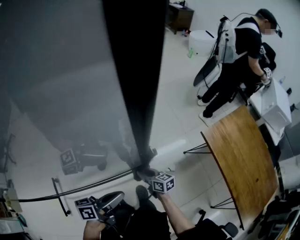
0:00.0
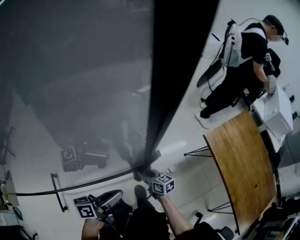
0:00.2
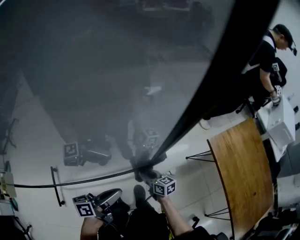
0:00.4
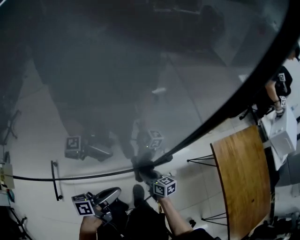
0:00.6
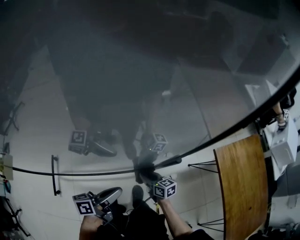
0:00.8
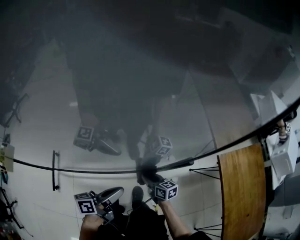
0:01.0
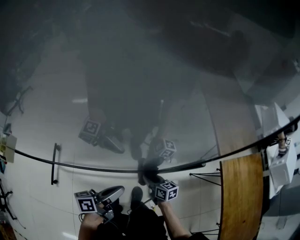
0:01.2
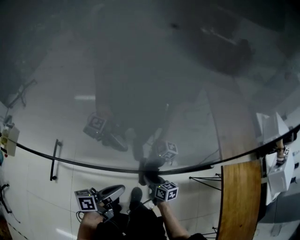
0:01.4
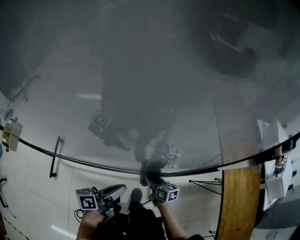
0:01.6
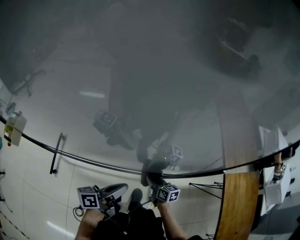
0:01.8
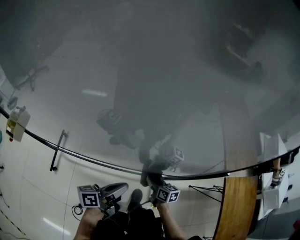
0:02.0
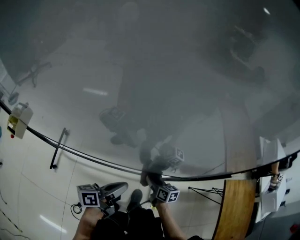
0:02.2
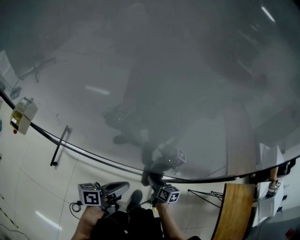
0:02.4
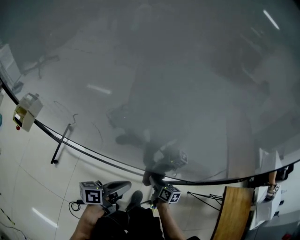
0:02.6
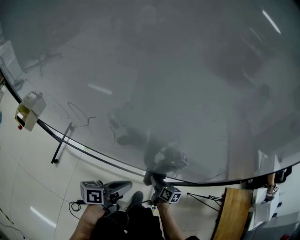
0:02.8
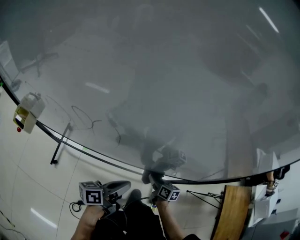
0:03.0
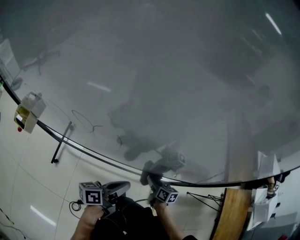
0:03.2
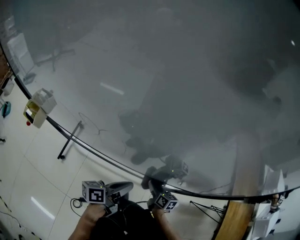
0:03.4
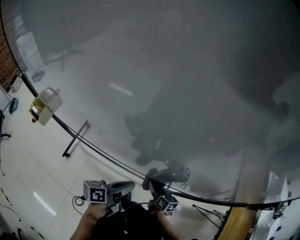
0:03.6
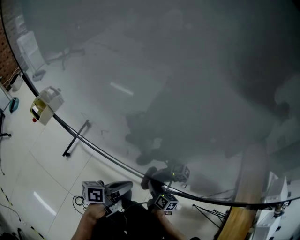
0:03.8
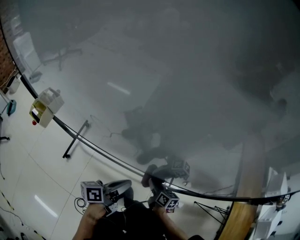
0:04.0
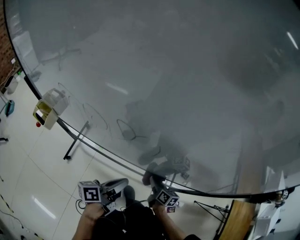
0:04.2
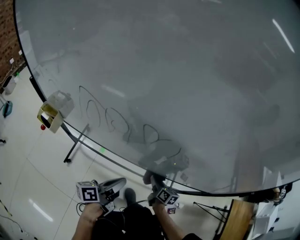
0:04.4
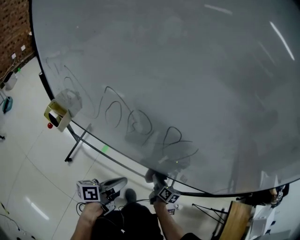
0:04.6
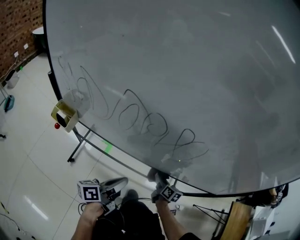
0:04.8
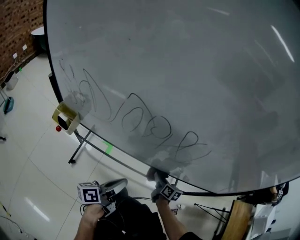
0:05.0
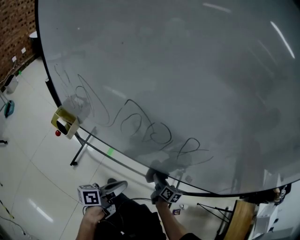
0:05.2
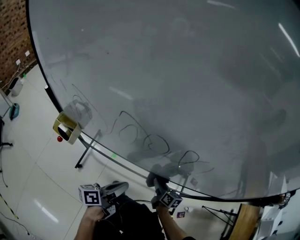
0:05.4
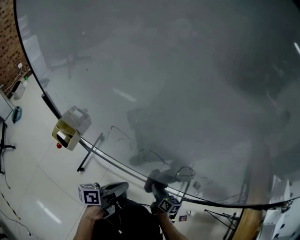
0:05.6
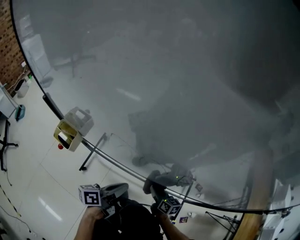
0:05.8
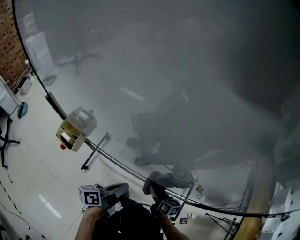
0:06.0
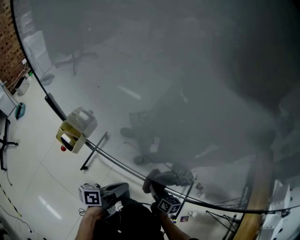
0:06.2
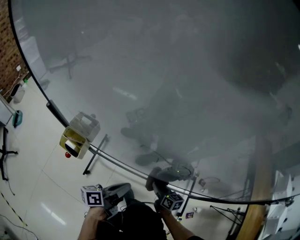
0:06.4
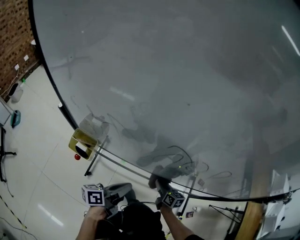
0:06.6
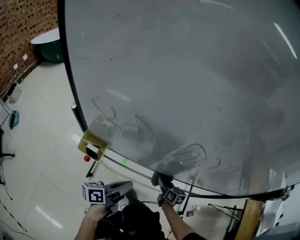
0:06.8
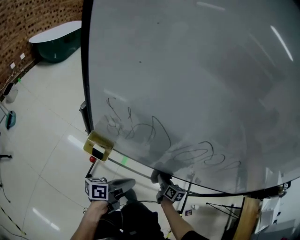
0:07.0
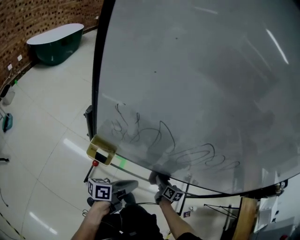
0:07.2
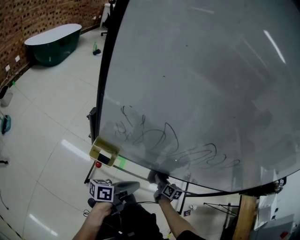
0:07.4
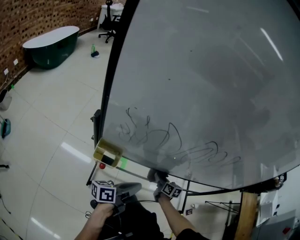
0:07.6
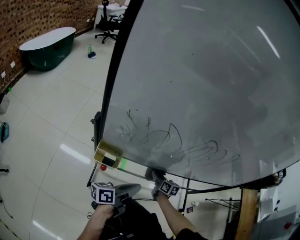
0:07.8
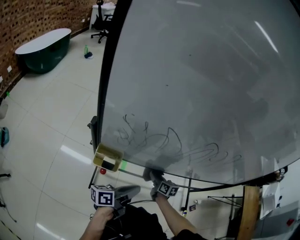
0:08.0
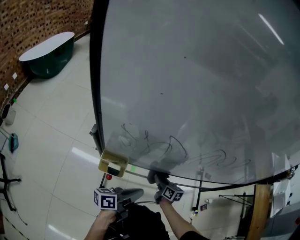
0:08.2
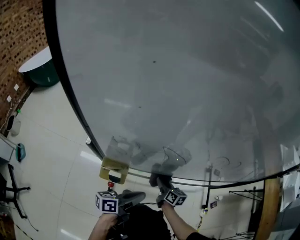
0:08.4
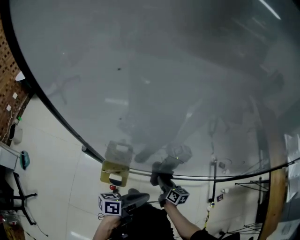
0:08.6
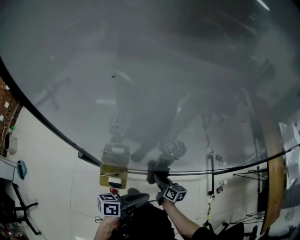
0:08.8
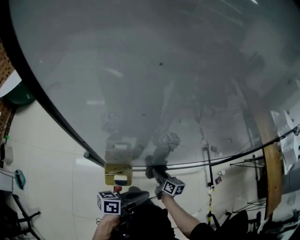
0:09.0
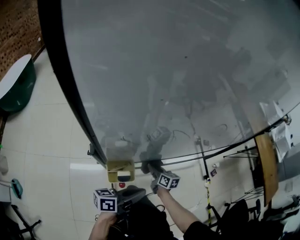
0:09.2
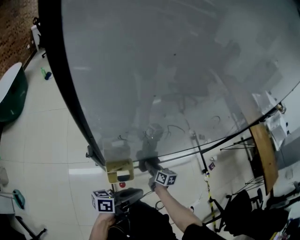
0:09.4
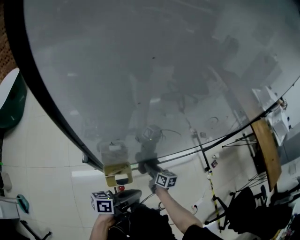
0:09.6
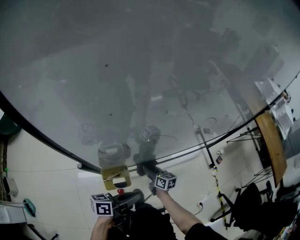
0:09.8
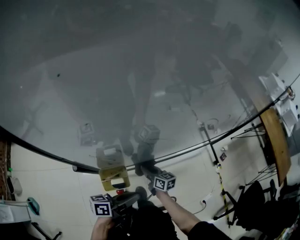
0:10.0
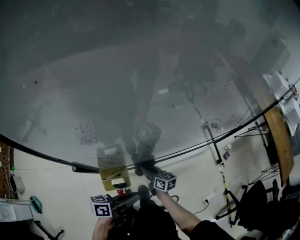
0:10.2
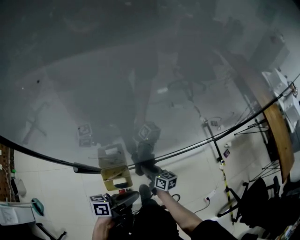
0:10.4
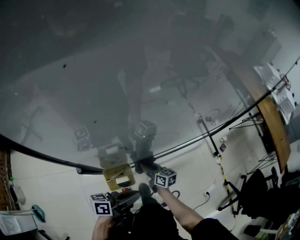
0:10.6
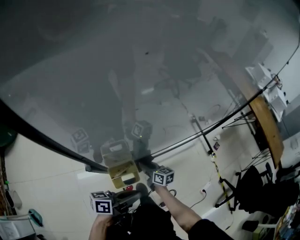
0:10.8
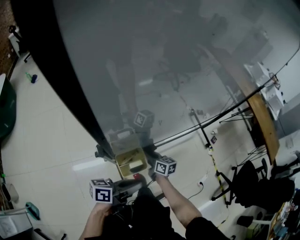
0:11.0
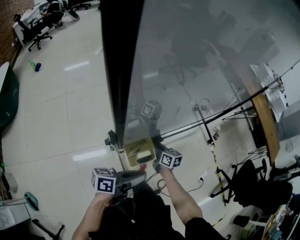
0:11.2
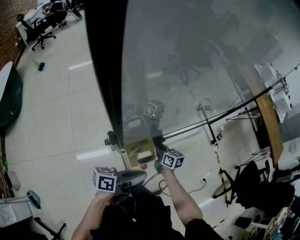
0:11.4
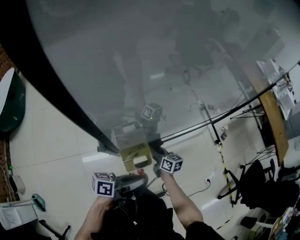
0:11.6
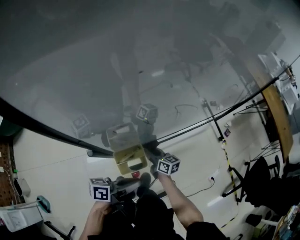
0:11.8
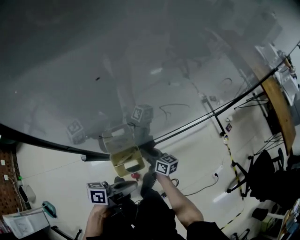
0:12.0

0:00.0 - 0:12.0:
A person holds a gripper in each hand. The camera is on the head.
0:00.0 - 0:01.6: Both grippers move to the left, some 15 cm. The left gripper changes its angle by approximately 30 degrees.
0:01.6 - 0:03.0: The grippers both shift to the left by some 15 cm.
0:03.0 - 0:04.4: Both grippers move to the left, roughly 15 cm.
0:04.4 - 0:06.0: The grippers both shift to the left by some 15 cm.
0:06.0 - 0:07.6: Both grippers travel together to the left, about 15 cm. The left gripper swivels some 20 degrees.
0:07.6 - 0:09.0: The left gripper travels to the left by about 5 cm. The right gripper shifts about 15 cm to the left.
0:09.0 - 0:10.4: The right gripper heads to the left, covering approximately 5 cm.
0:10.4 - 0:12.0: The left gripper heads to the left, covering some 5 cm.

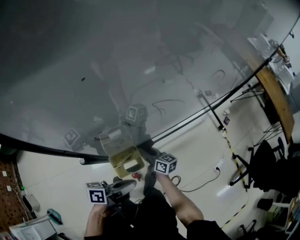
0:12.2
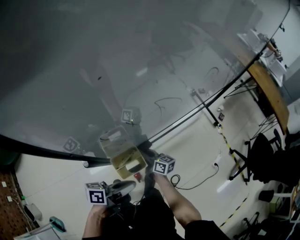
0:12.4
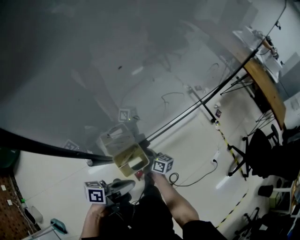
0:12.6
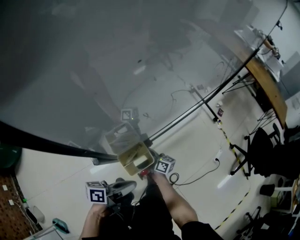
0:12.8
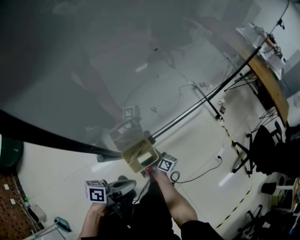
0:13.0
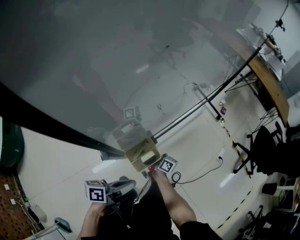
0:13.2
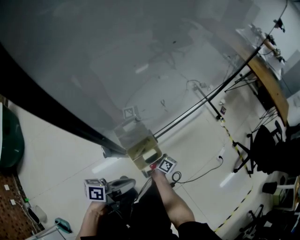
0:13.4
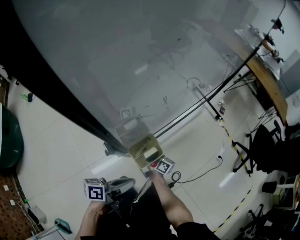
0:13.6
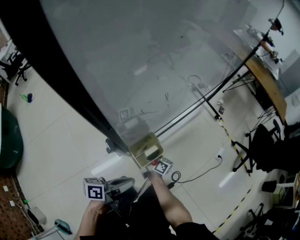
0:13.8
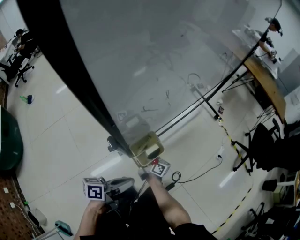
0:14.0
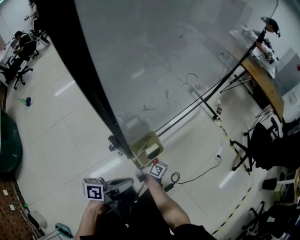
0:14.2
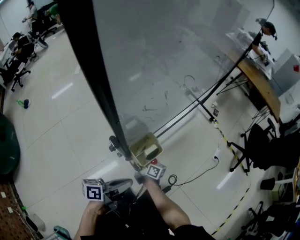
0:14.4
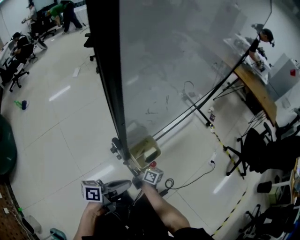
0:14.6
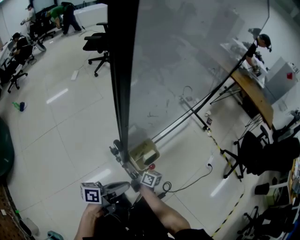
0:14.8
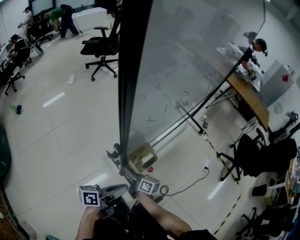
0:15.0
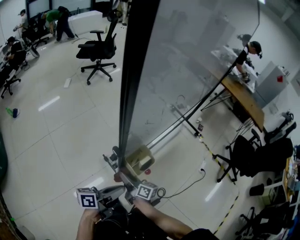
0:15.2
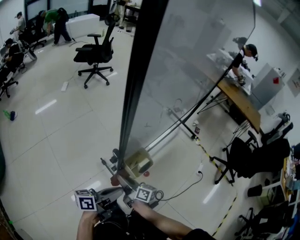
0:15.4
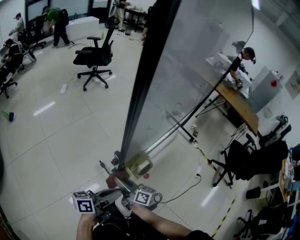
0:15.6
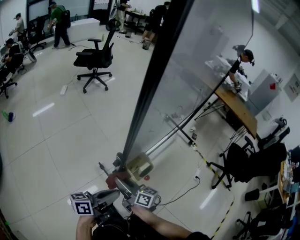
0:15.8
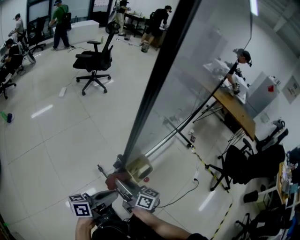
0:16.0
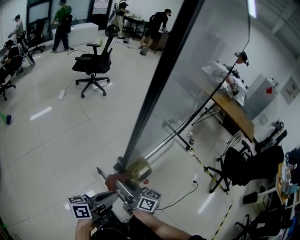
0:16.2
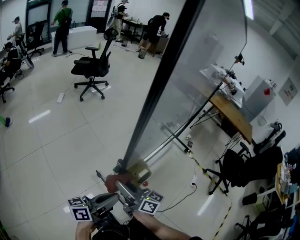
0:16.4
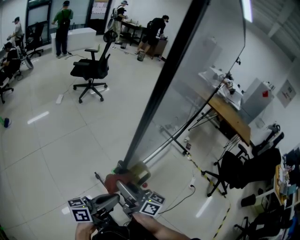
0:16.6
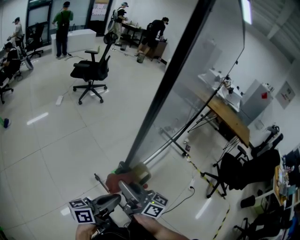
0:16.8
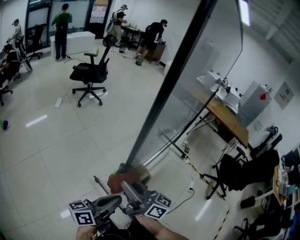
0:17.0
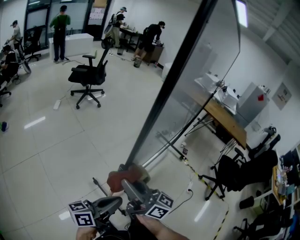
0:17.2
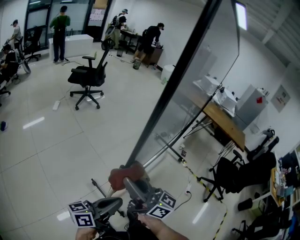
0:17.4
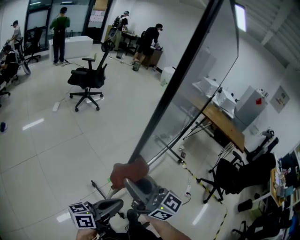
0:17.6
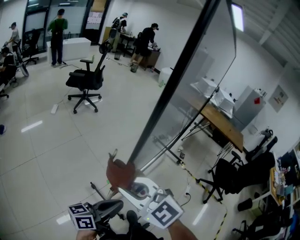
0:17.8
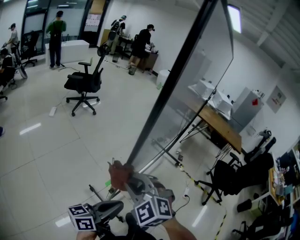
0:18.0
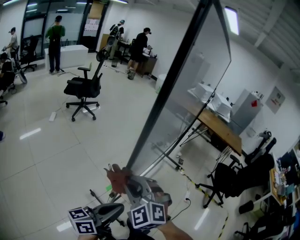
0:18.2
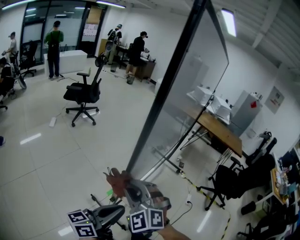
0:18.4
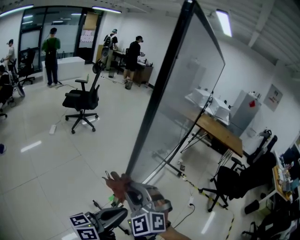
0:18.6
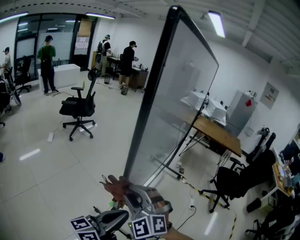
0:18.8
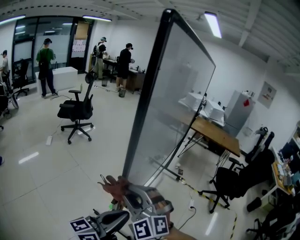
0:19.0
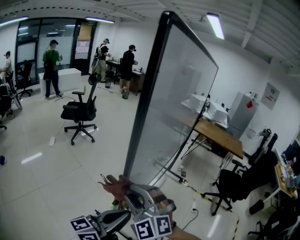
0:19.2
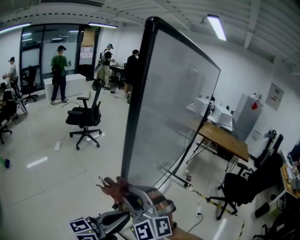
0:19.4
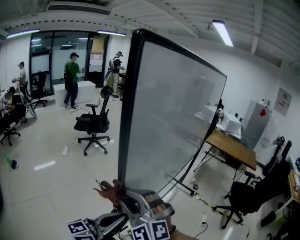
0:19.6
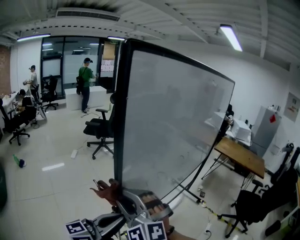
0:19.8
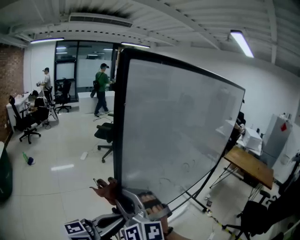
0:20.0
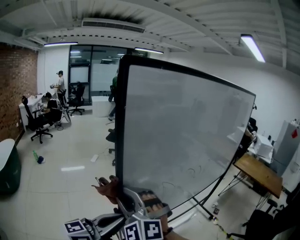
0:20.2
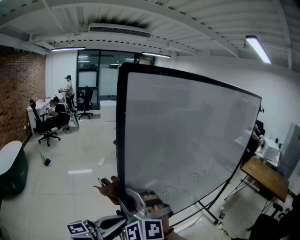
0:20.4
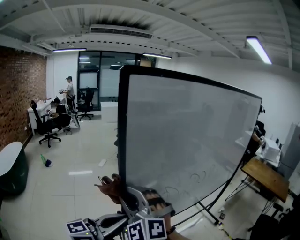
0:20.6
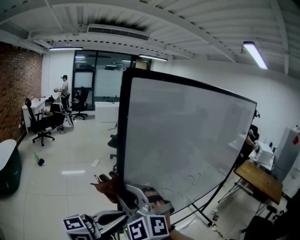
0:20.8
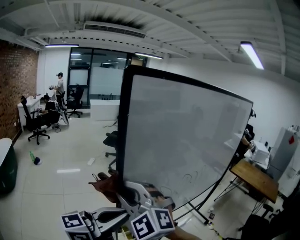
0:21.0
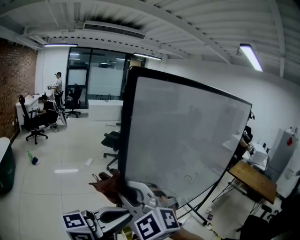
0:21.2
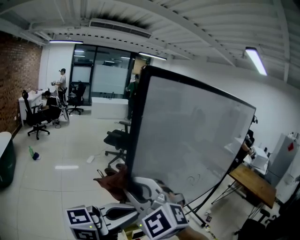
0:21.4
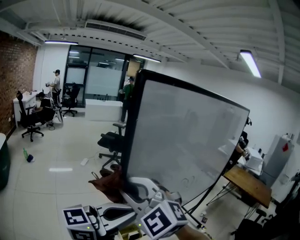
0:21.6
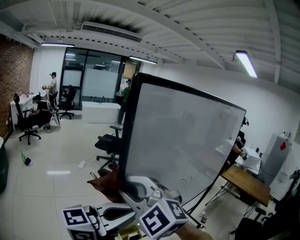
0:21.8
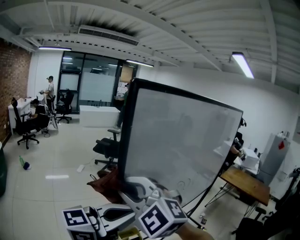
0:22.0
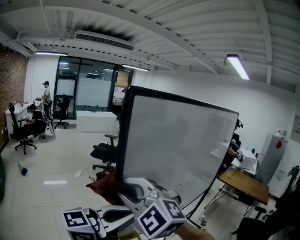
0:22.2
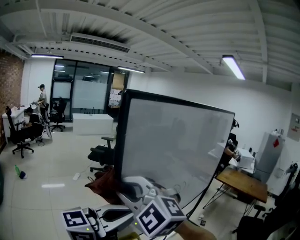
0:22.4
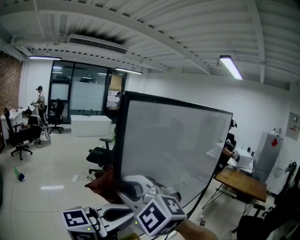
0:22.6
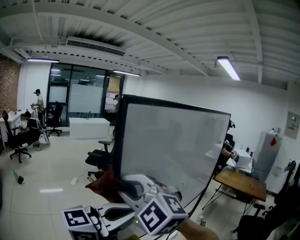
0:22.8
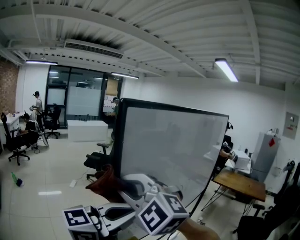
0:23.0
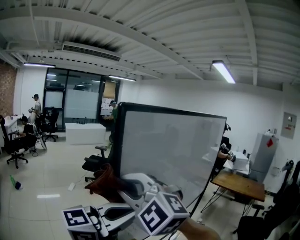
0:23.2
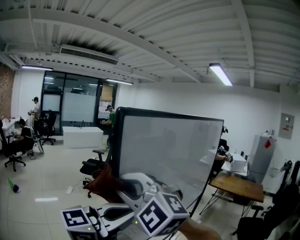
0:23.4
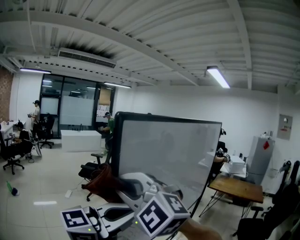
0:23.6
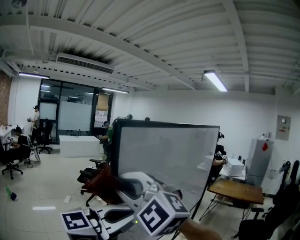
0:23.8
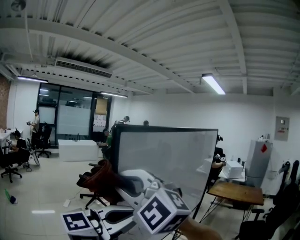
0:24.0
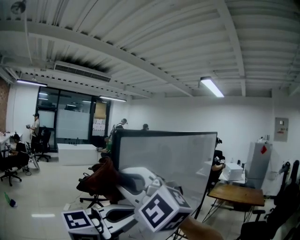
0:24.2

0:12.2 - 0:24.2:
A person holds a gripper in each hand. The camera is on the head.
0:12.2 - 0:13.8: The left gripper moves to the left and backward, approximately 10 cm, while the right gripper ends up approximately 5 cm from where it was, and rotates approximately 30 degrees.
0:13.8 - 0:15.2: The right gripper goes about 10 cm backward, upward and to the left.
0:15.2 - 0:16.6: The right gripper travels upward by about 20 cm, and changes its angle by some 20 degrees, while the left gripper goes about 10 cm upward.
0:16.6 - 0:18.2: The right gripper shifts about 10 cm upward, and twists about 90 degrees counterclockwise, seen from behind. The left gripper moves upward, some 5 cm.
0:18.2 - 0:19.8: The grippers both shift upward by some 15 cm. The left gripper swivels approximately 20 degrees, while the right gripper rotates roughly 20 degrees.
0:19.8 - 0:21.2: Both grippers travel together upward, about 10 cm.
0:21.2 - 0:22.6: The two grippers go roughly 5 cm upward.
0:22.6 - 0:24.2: Both grippers travel together upward, some 10 cm.
